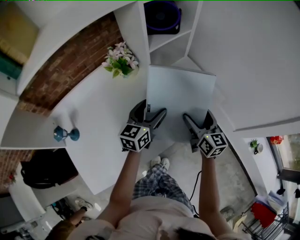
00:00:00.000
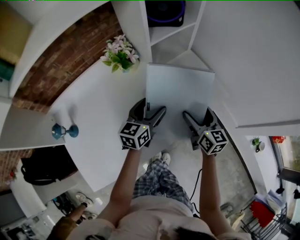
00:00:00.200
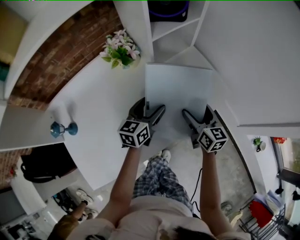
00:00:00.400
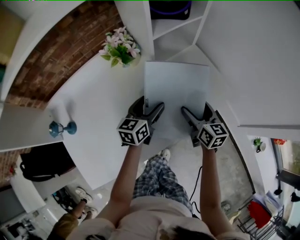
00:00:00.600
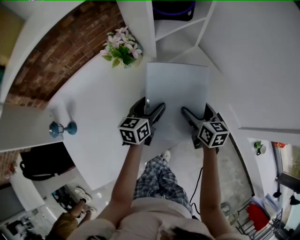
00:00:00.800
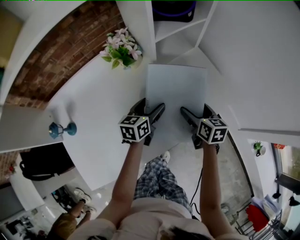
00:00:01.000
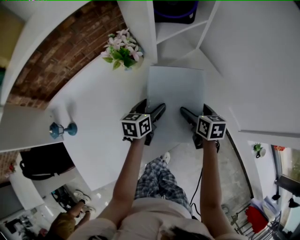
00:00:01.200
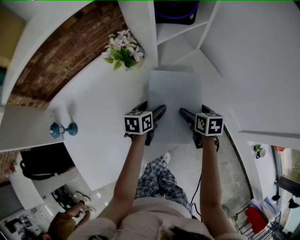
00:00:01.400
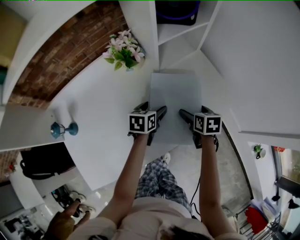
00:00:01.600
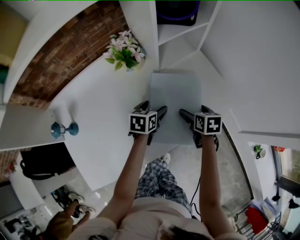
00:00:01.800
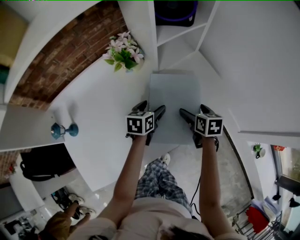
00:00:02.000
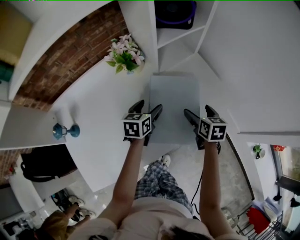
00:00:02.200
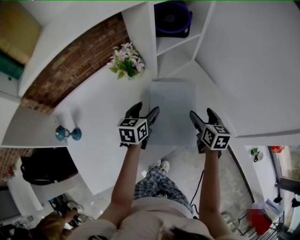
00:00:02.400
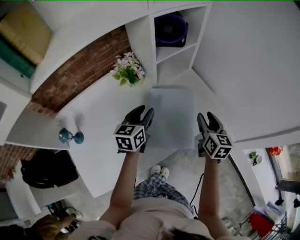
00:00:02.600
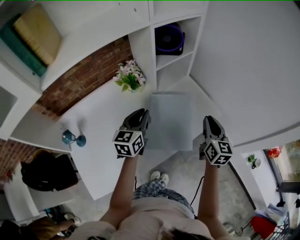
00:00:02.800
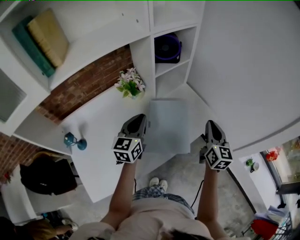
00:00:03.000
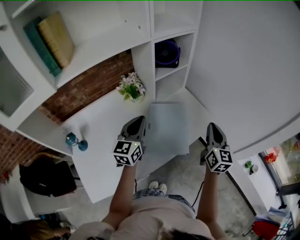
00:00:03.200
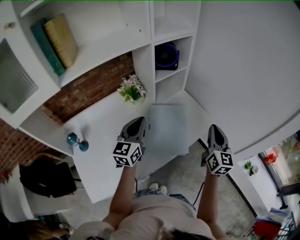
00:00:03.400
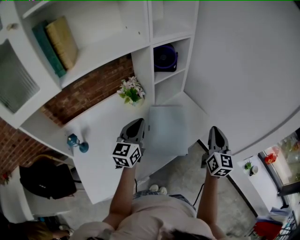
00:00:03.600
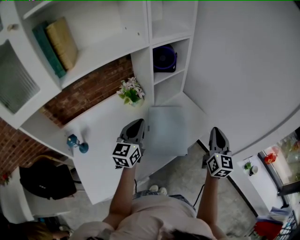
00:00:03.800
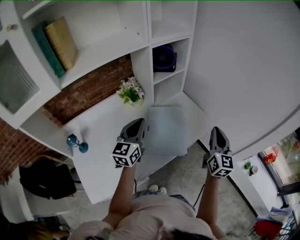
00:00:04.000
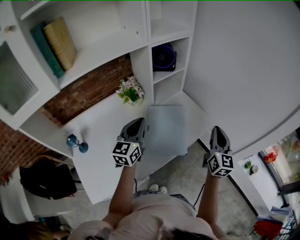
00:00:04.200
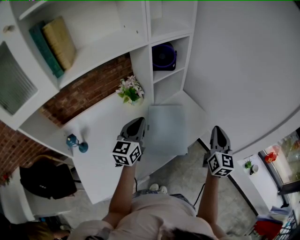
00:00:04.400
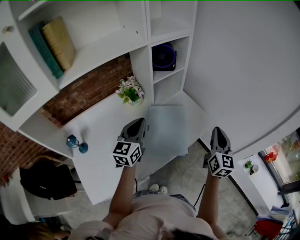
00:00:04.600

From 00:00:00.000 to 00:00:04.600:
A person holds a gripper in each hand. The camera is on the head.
From 00:00:00.000 to 00:00:01.600: The left gripper moves downward, about 15 cm, and points its fingers some 30 degrees further downward, while the right gripper goes about 15 cm downward and forward, and angles its fingers downward, by roughly 40 degrees.
From 00:00:01.600 to 00:00:03.000: The two grippers go about 25 cm upward. The left gripper tips its fingers upward by about 40 degrees, and closes its fingers. The right gripper tilts its fingers some 40 degrees upward, and closes its fingers.
From 00:00:03.000 to 00:00:04.600: The left gripper shifts by about 5 cm; the right gripper is displaced backward by some 5 cm.

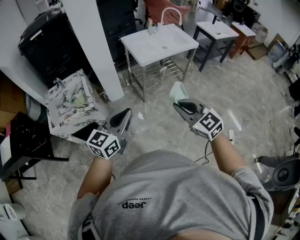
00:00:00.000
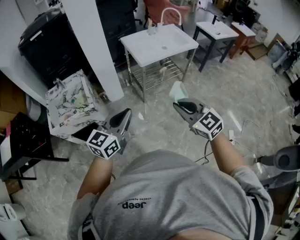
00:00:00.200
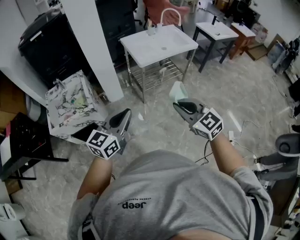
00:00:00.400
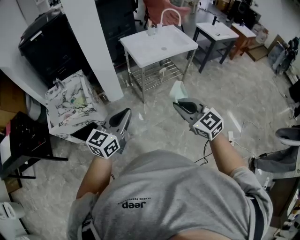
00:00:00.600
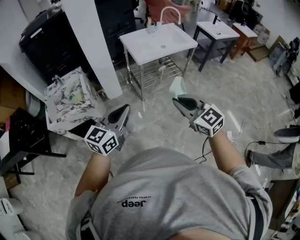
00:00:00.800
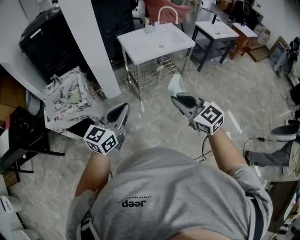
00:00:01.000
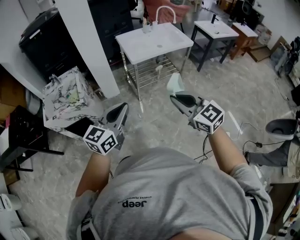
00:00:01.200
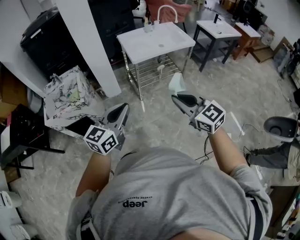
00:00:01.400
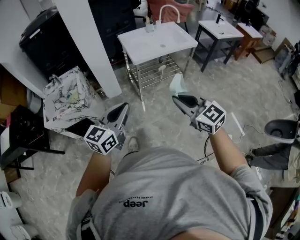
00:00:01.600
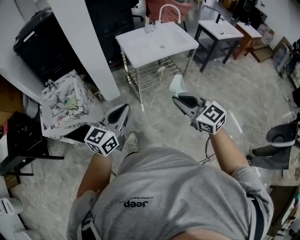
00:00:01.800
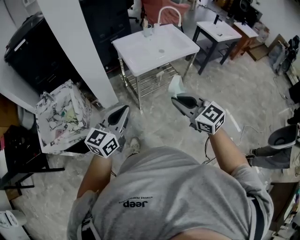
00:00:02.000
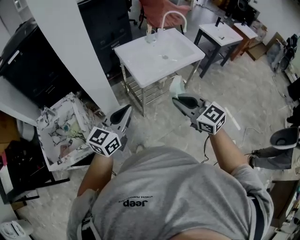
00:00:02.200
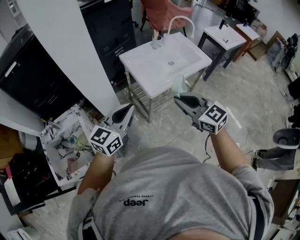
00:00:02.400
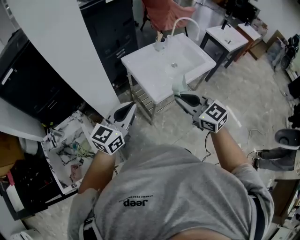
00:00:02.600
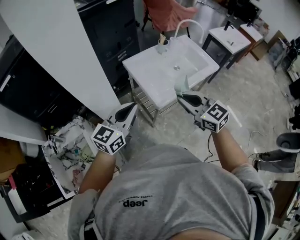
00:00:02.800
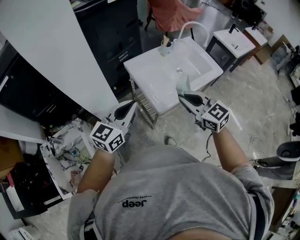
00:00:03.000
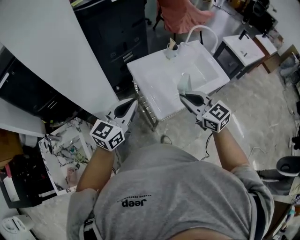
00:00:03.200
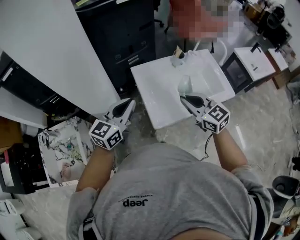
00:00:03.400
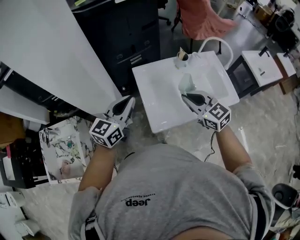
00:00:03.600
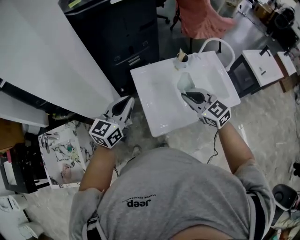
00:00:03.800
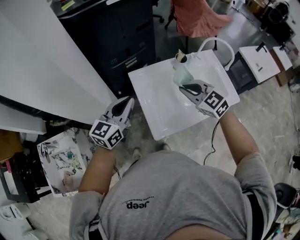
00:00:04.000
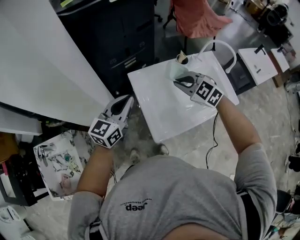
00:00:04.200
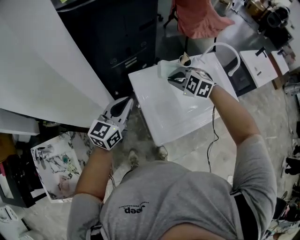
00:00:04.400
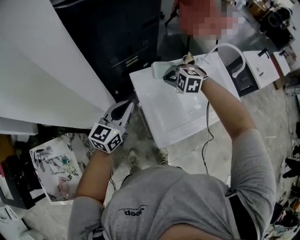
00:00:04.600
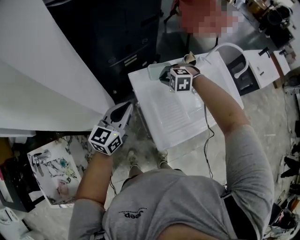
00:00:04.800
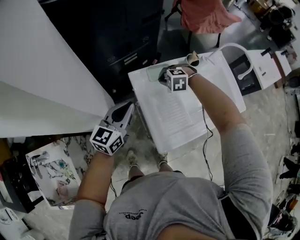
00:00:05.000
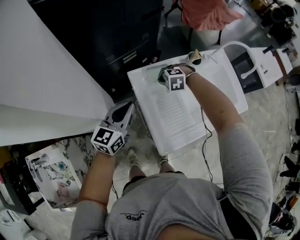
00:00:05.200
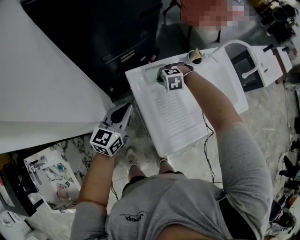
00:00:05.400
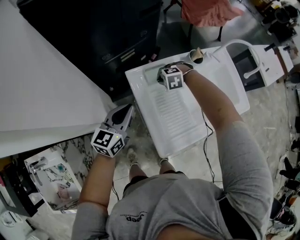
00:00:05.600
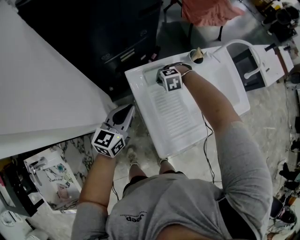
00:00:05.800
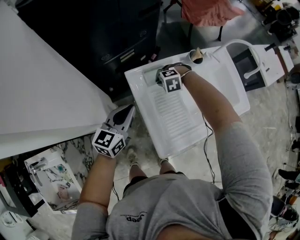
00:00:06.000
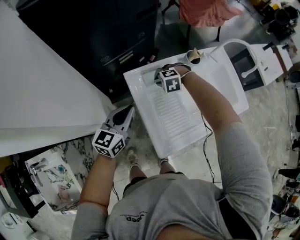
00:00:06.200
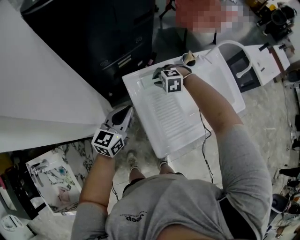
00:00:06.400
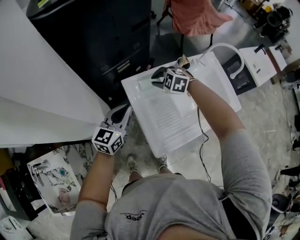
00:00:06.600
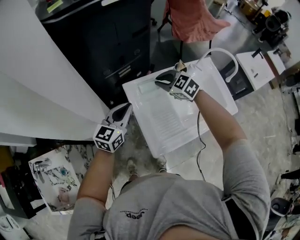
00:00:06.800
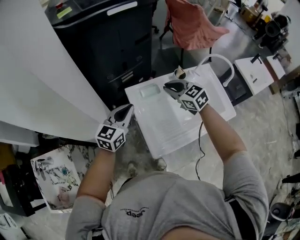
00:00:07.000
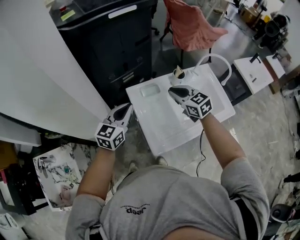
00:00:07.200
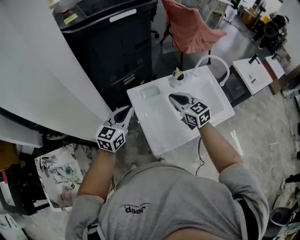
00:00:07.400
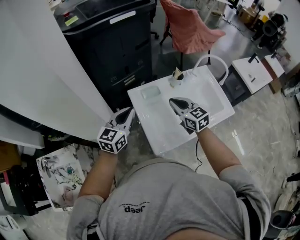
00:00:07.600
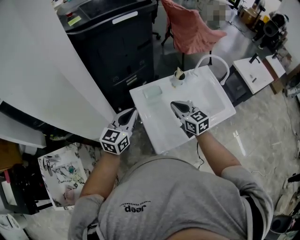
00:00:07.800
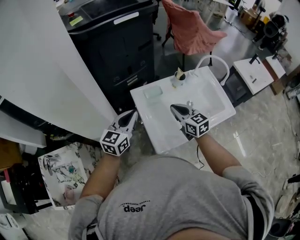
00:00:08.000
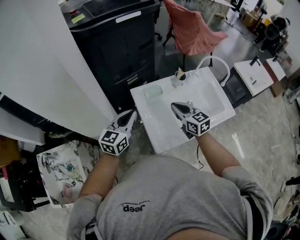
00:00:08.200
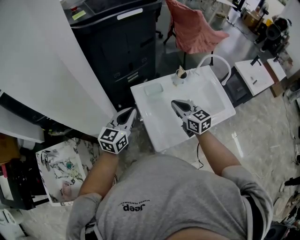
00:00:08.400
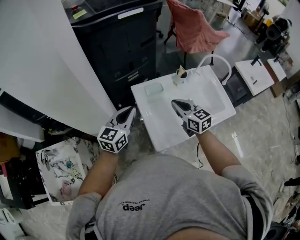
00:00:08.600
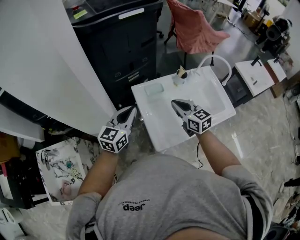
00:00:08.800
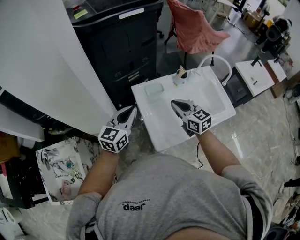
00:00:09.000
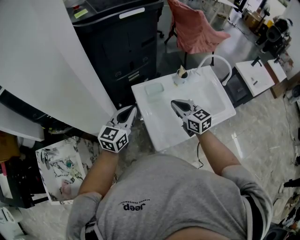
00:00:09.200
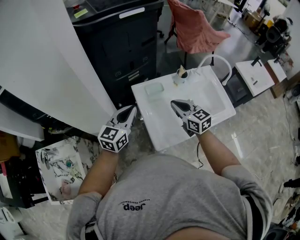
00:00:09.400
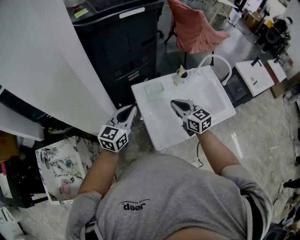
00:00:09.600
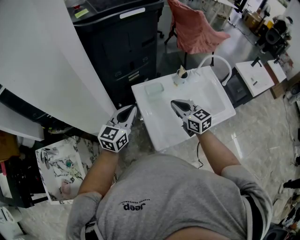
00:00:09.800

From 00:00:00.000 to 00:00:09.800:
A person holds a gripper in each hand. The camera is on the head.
From 00:00:00.000 to 00:00:01.400: The grippers both shift to the right by some 10 cm.
From 00:00:01.400 to 00:00:02.800: Both grippers are carried forward, some 50 cm.
From 00:00:02.800 to 00:00:04.200: Both grippers move forward, approximately 25 cm. The right gripper turns by about 40 degrees.
From 00:00:04.200 to 00:00:05.600: The right gripper moves downward, approximately 25 cm, and tips its fingers downward by roughly 40 degrees; the left gripper moves downward, roughly 15 cm.
From 00:00:05.600 to 00:00:07.000: The right gripper heads upward, covering roughly 25 cm, and points its fingers approximately 50 degrees further upward. Meanwhile the left gripper travels upward by some 10 cm.
From 00:00:07.000 to 00:00:08.400: The right gripper goes approximately 10 cm backward, and changes its angle by roughly 20 degrees. The left gripper shifts roughly 5 cm backward.
From 00:00:08.400 to 00:00:09.800: Both grippers stay put.

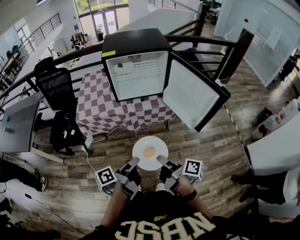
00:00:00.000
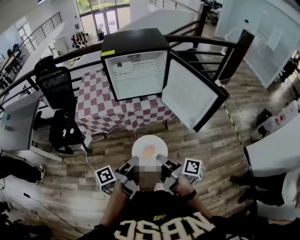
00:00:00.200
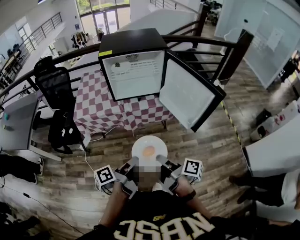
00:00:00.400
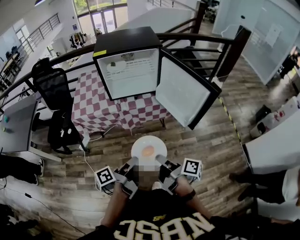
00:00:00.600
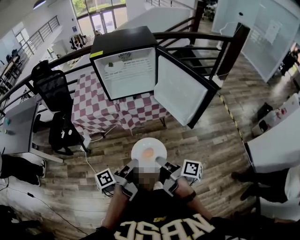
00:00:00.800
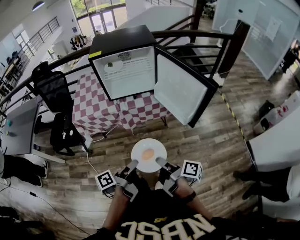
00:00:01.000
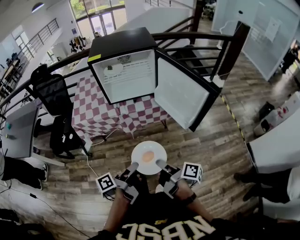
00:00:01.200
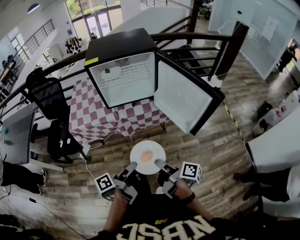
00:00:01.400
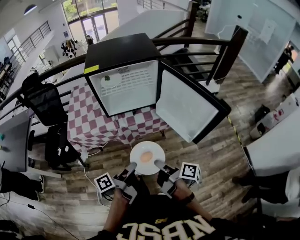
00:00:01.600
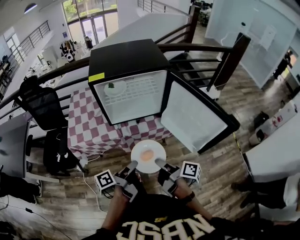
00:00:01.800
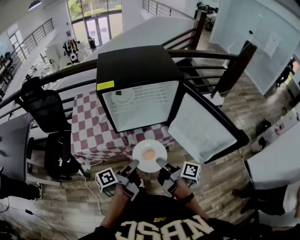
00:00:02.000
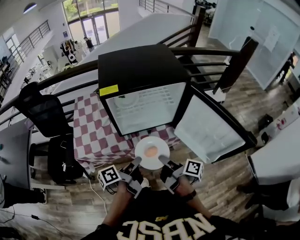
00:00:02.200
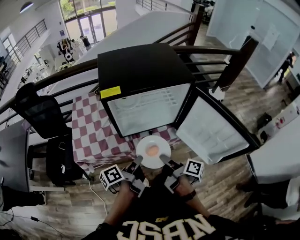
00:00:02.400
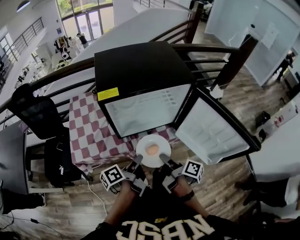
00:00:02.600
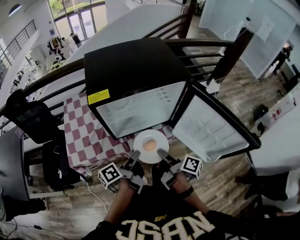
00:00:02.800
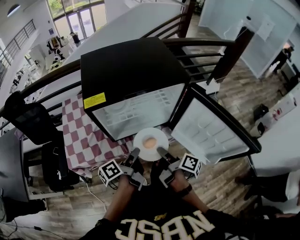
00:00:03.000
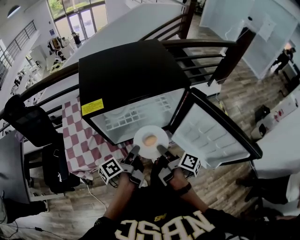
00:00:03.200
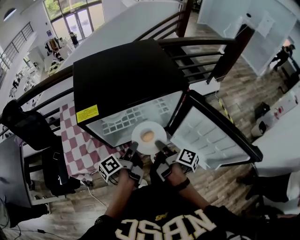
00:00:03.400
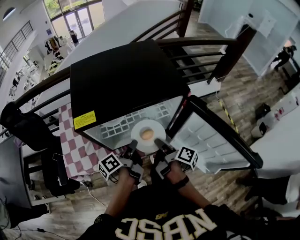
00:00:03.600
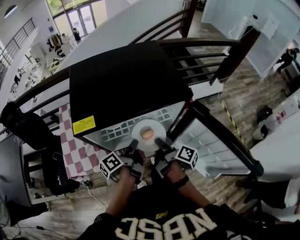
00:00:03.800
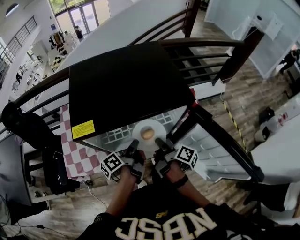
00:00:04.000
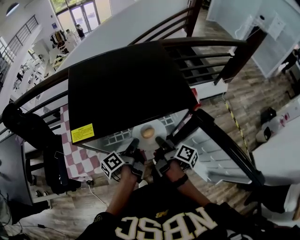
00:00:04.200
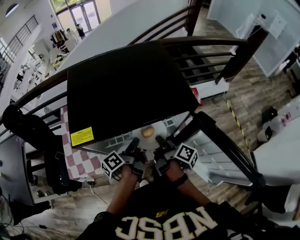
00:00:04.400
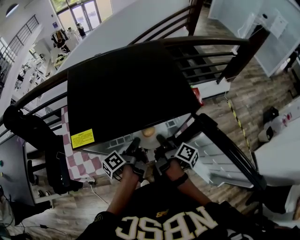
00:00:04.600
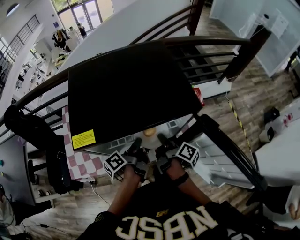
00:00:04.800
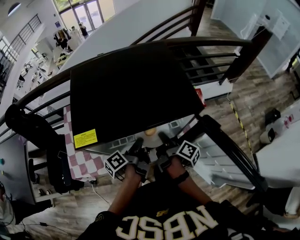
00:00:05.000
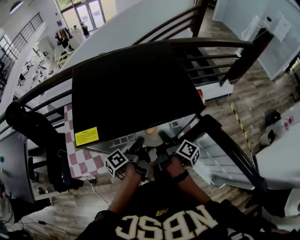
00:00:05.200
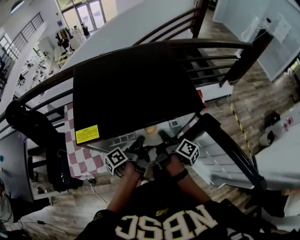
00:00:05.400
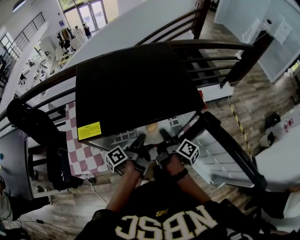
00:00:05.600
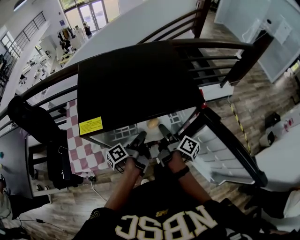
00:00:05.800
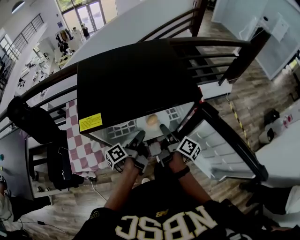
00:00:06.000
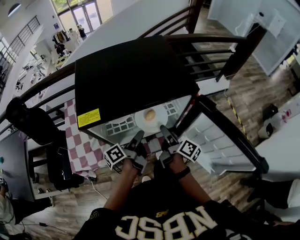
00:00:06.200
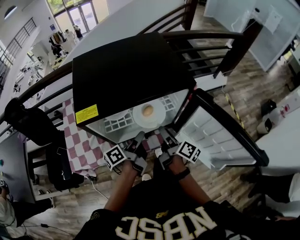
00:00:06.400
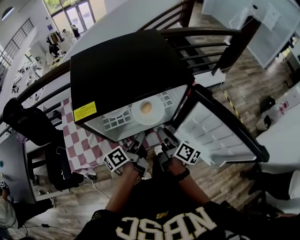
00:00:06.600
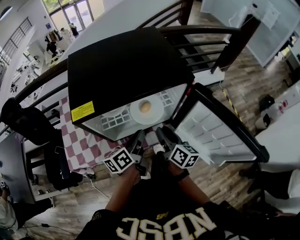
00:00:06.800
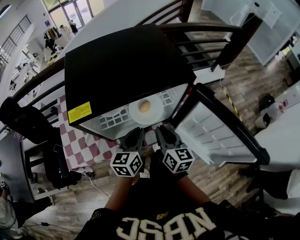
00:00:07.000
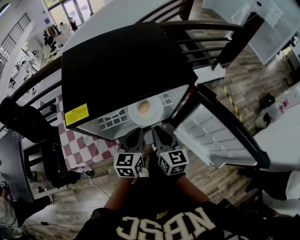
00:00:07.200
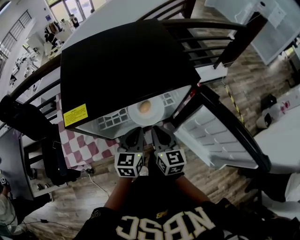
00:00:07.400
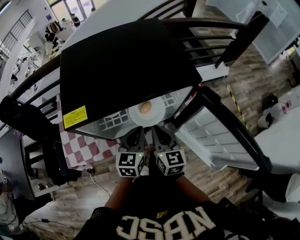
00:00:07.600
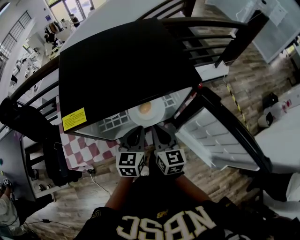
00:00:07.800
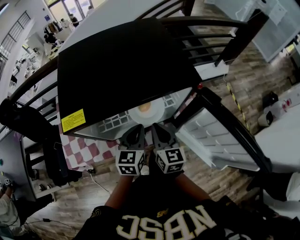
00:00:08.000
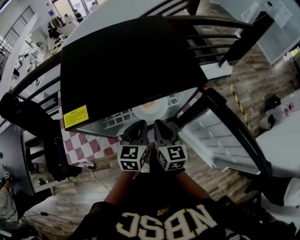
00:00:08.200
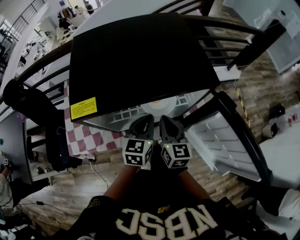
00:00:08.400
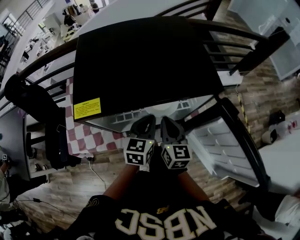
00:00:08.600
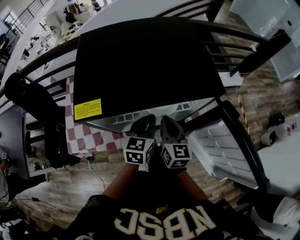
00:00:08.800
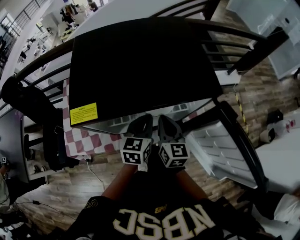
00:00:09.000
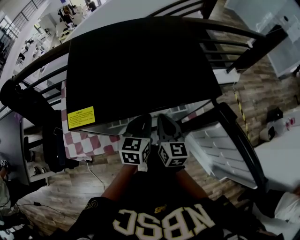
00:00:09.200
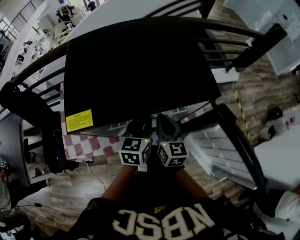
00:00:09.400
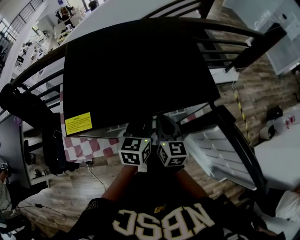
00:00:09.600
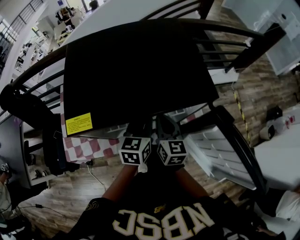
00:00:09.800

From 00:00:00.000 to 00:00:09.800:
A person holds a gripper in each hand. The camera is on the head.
From 00:00:00.000 to 00:00:01.400: The right gripper moves approximately 5 cm. The left gripper changes place by roughly 5 cm.
From 00:00:01.400 to 00:00:02.800: The grippers both shift forward by roughly 30 cm.
From 00:00:02.800 to 00:00:04.200: Both grippers travel together forward, approximately 20 cm.
From 00:00:04.200 to 00:00:05.600: The grippers move only a little.
From 00:00:05.600 to 00:00:07.000: The two grippers go about 5 cm backward. The right gripper twists approximately 60 degrees counterclockwise, seen from behind, and opens, then closes again. The left gripper rolls clockwise, seen from behind, by about 70 degrees.
From 00:00:07.000 to 00:00:08.400: The right gripper ends up roughly 5 cm from where it was. The left gripper changes place by some 5 cm.
From 00:00:08.400 to 00:00:09.800: The grippers move only a little.
